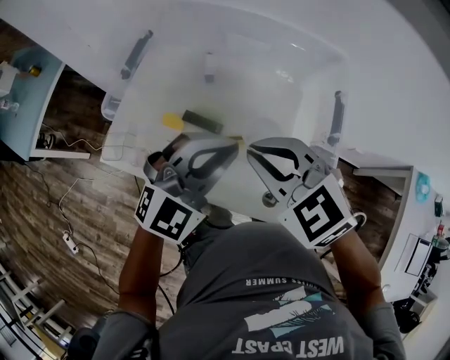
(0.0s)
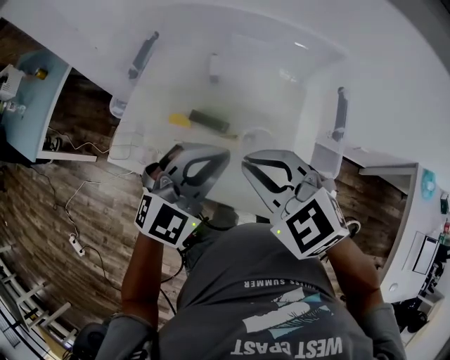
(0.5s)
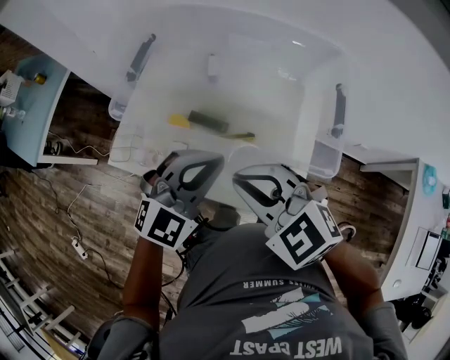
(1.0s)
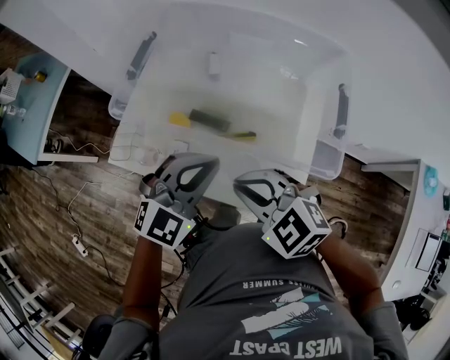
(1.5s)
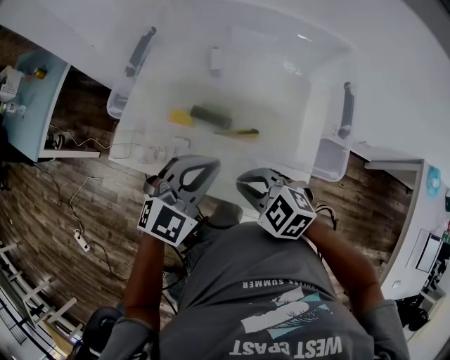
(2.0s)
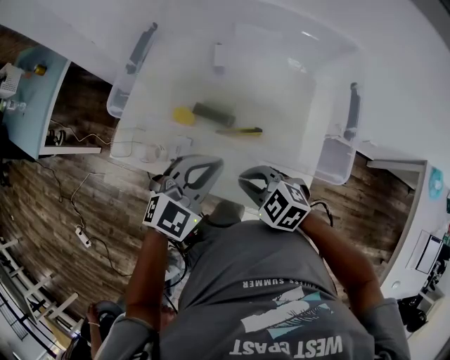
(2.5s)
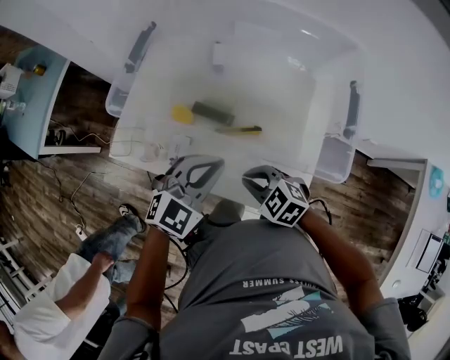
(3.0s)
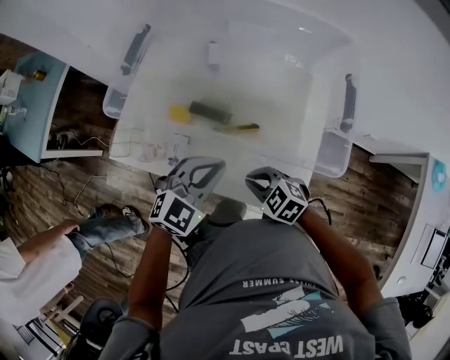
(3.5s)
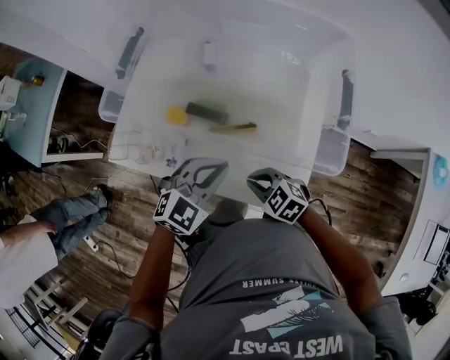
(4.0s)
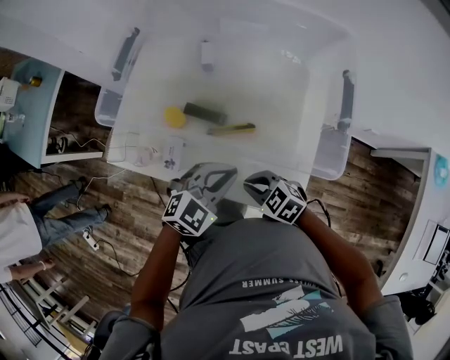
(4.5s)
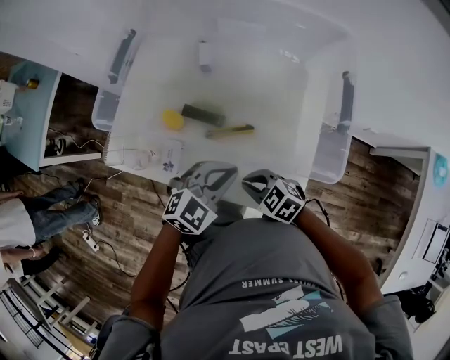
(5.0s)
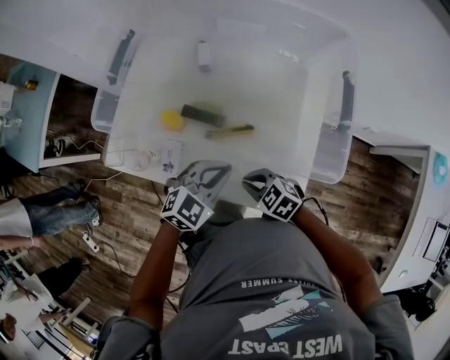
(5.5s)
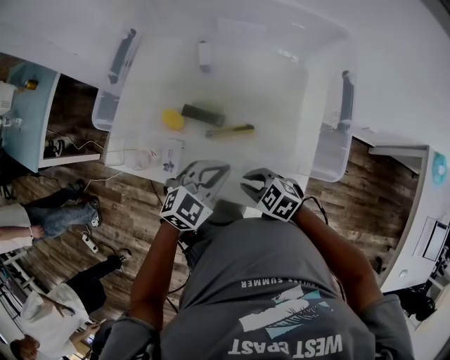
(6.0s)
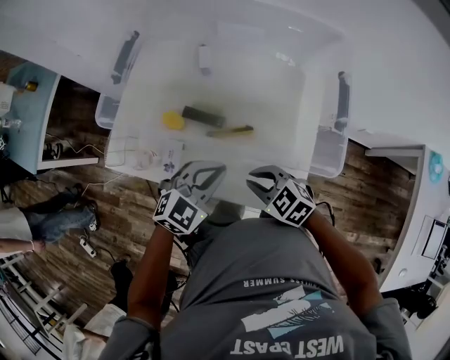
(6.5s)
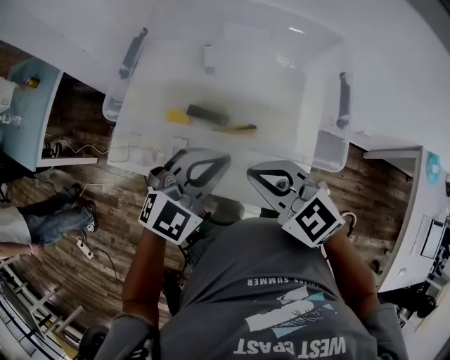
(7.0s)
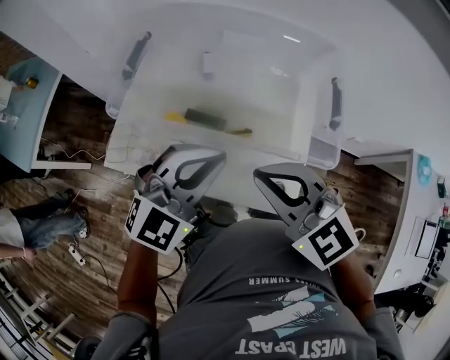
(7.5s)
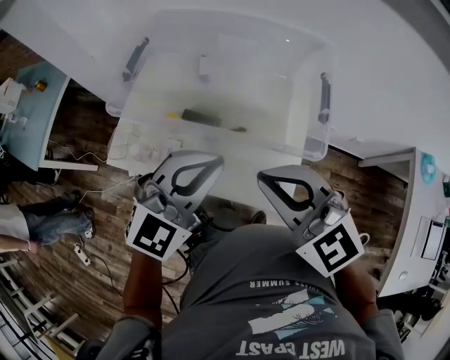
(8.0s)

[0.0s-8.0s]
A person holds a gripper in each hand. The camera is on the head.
0.0s to 2.0s: The left gripper shifts roughly 10 cm downward, while the right gripper travels downward and backward by about 15 cm.
2.0s to 4.0s: The left gripper travels downward by roughly 5 cm. Meanwhile the right gripper goes some 10 cm downward.
4.0s to 6.0s: The grippers move only a little.
6.0s to 8.0s: Both grippers travel together upward, some 30 cm. The left gripper turns by roughly 30 degrees. The right gripper turns by some 40 degrees.

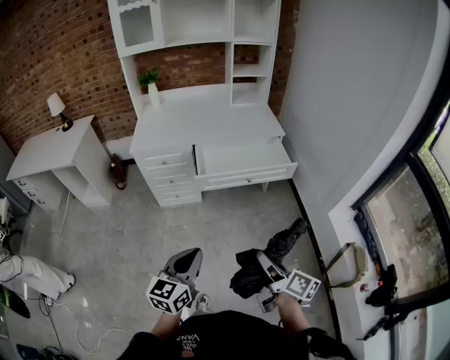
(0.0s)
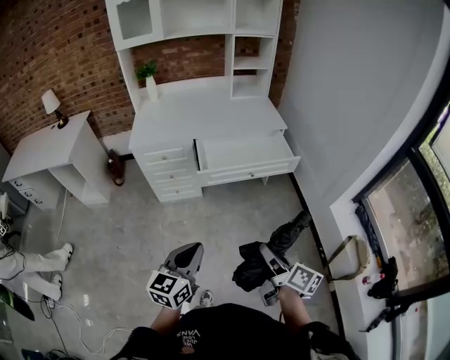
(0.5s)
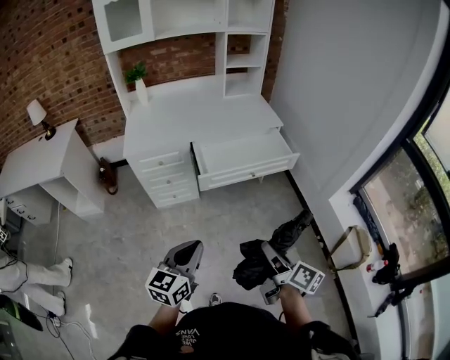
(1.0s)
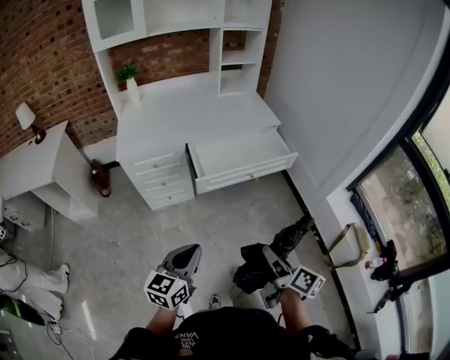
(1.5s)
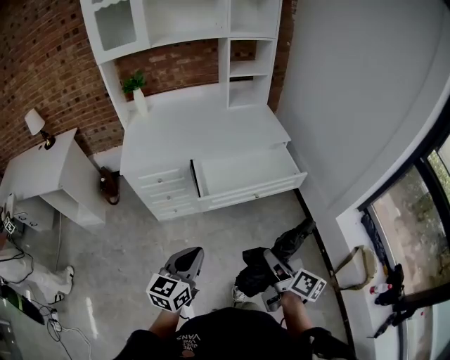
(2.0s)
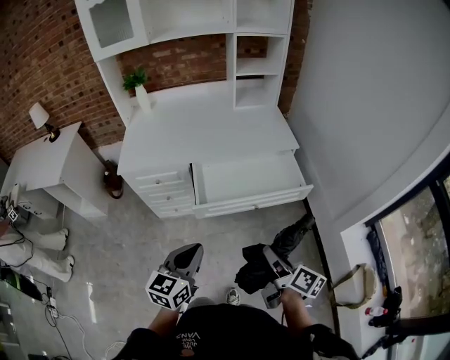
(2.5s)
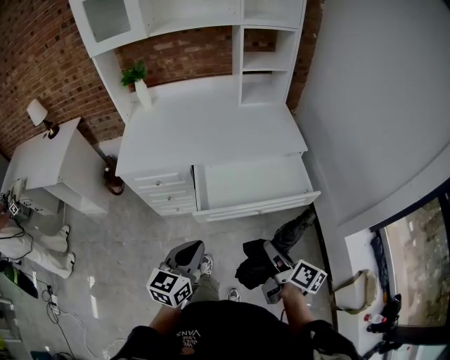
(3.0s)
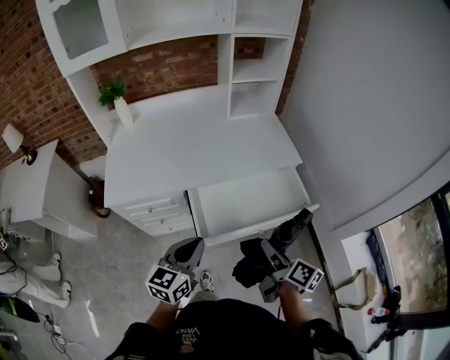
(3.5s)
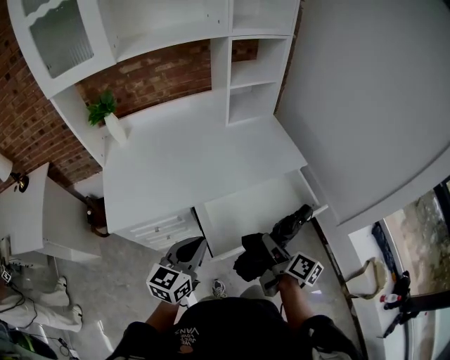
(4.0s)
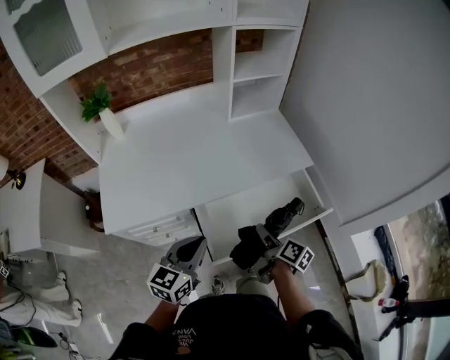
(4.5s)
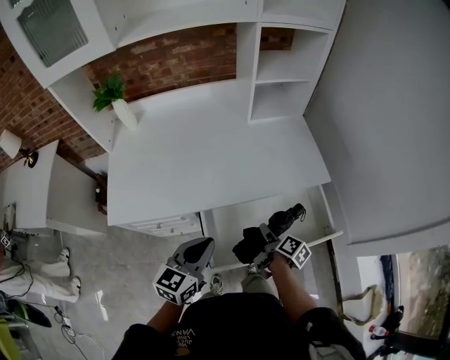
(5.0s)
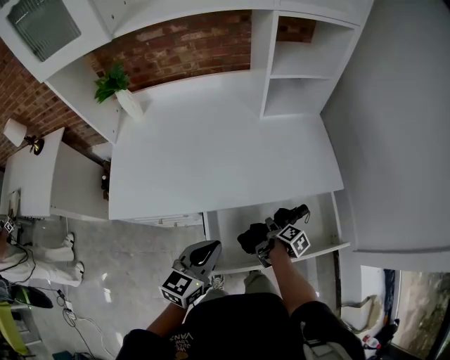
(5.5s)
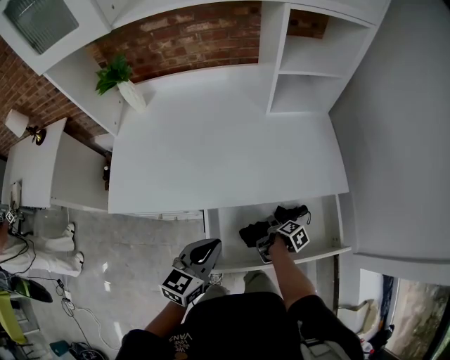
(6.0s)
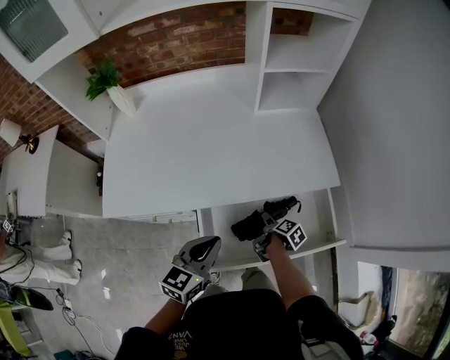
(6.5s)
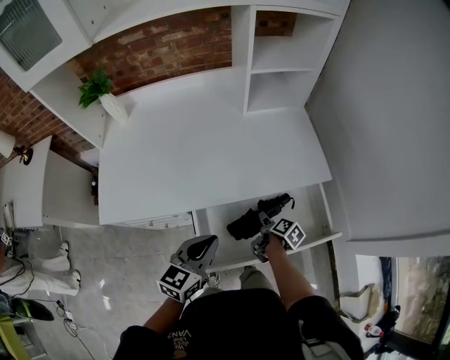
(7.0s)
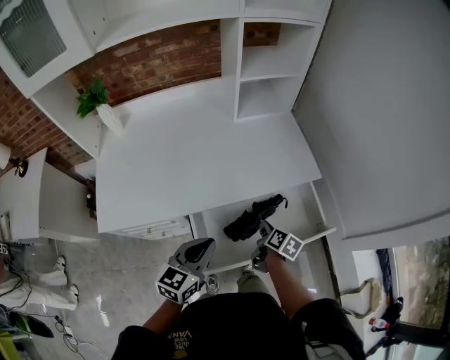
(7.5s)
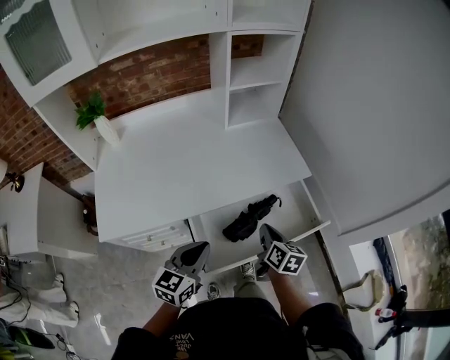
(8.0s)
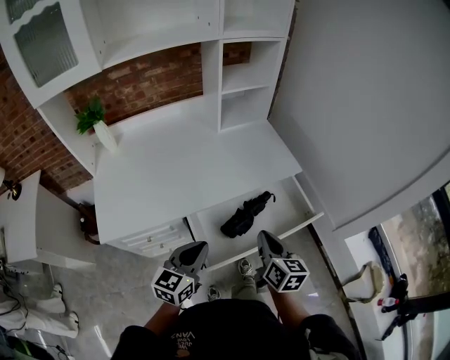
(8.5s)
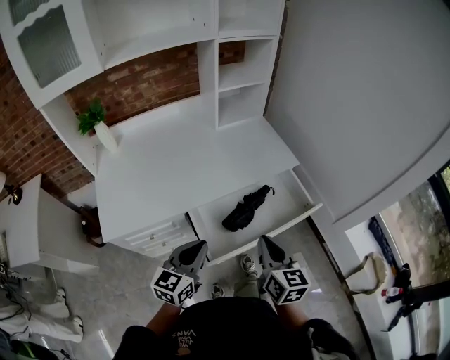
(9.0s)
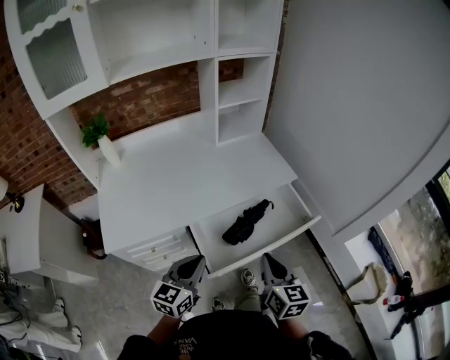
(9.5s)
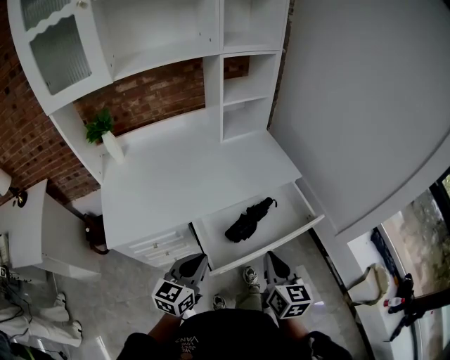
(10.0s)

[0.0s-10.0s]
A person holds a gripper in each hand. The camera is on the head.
0.0s to 2.0s: The right gripper heads forward, covering about 15 cm, while the left gripper is displaced forward and to the left by roughly 20 cm.
2.0s to 4.0s: The grippers both shift forward by some 35 cm.
4.0s to 6.0s: The right gripper goes approximately 35 cm downward and forward, and tilts its fingers approximately 40 degrees downward, while the left gripper is displaced forward and downward by approximately 15 cm.
6.0s to 8.0s: The left gripper heads backward, covering approximately 5 cm. The right gripper moves upward, roughly 20 cm, turns by some 50 degrees, and closes up.
8.0s to 10.0s: The left gripper shifts roughly 10 cm backward, while the right gripper moves backward and upward, roughly 20 cm, and rotates about 20 degrees.

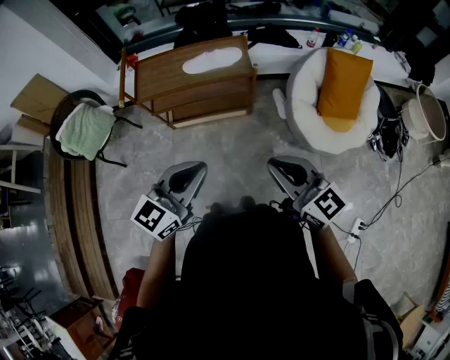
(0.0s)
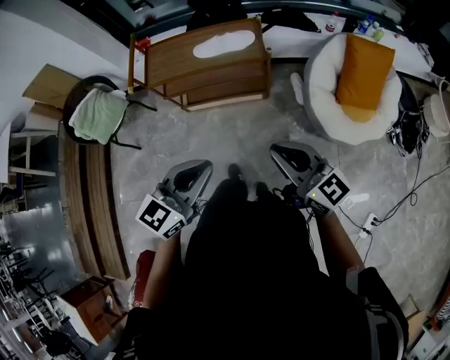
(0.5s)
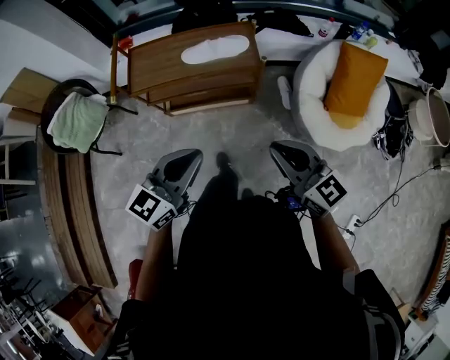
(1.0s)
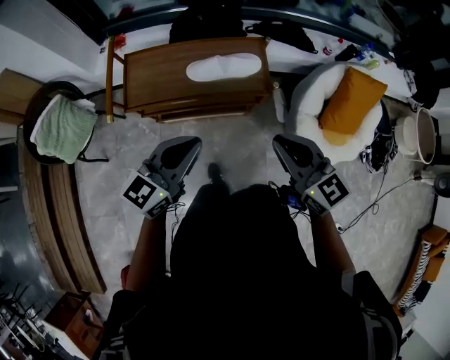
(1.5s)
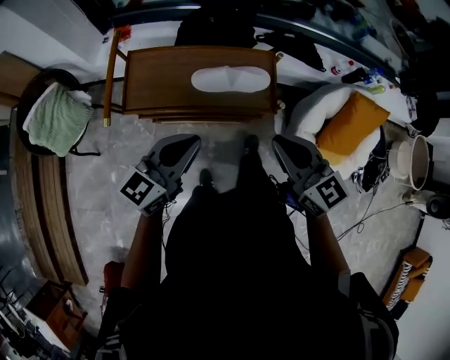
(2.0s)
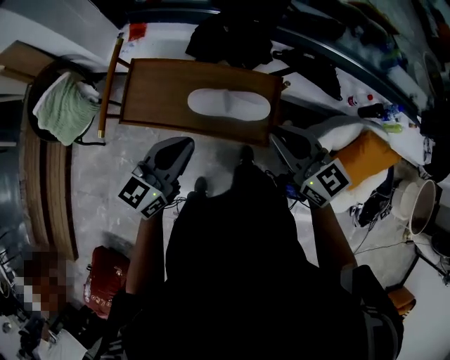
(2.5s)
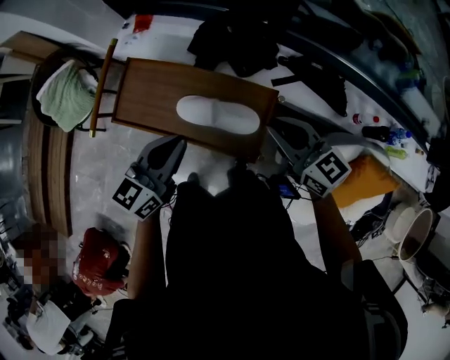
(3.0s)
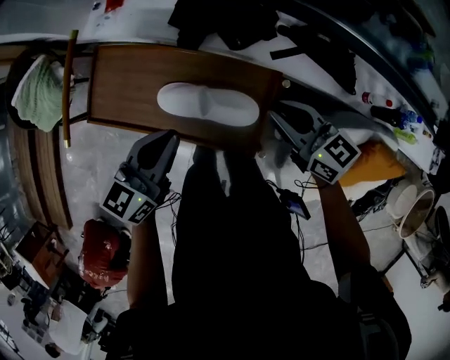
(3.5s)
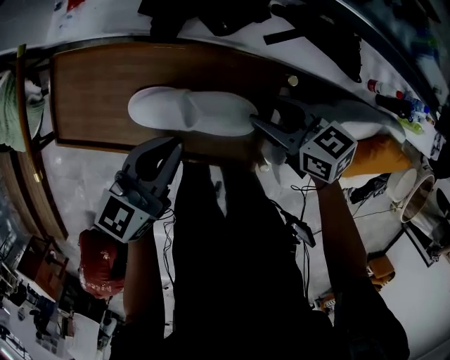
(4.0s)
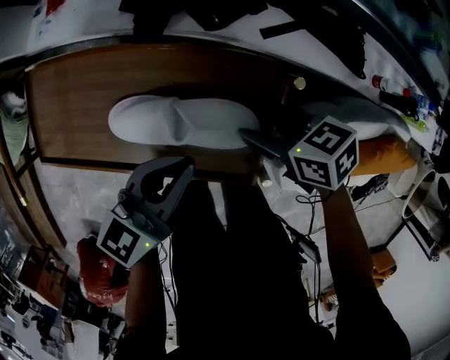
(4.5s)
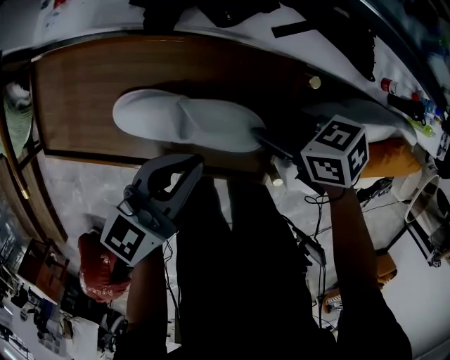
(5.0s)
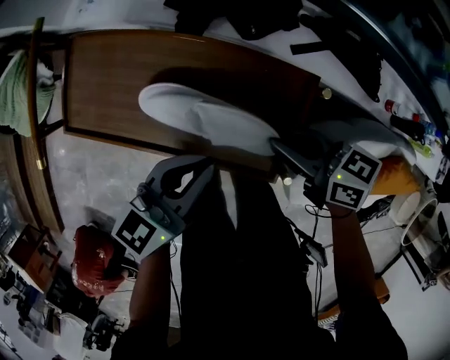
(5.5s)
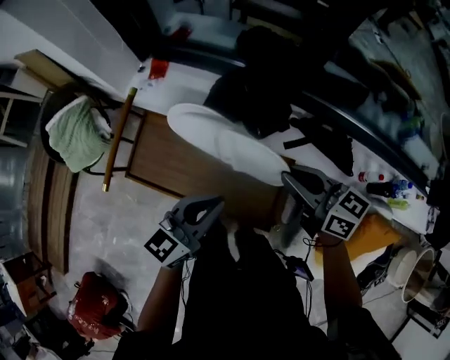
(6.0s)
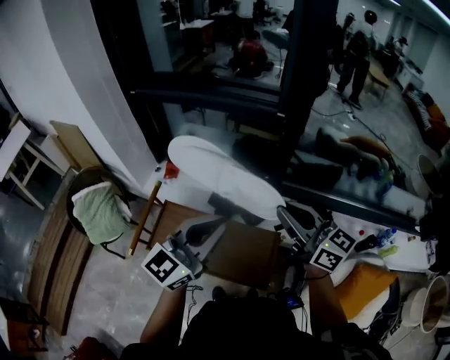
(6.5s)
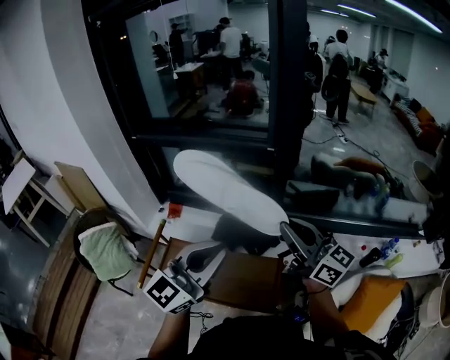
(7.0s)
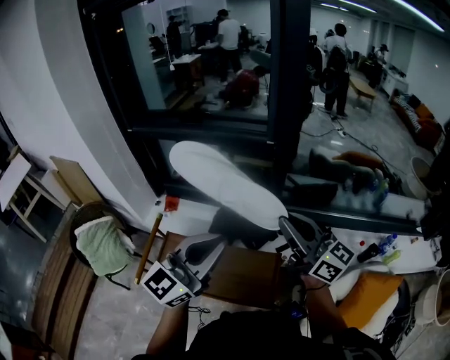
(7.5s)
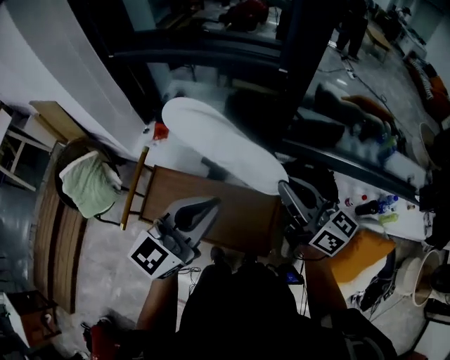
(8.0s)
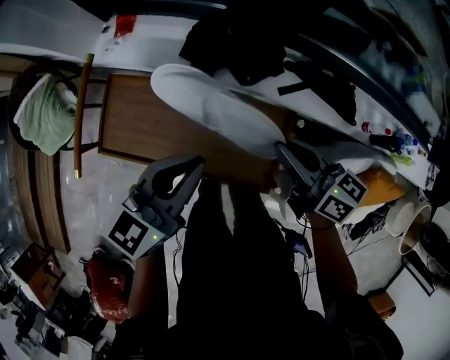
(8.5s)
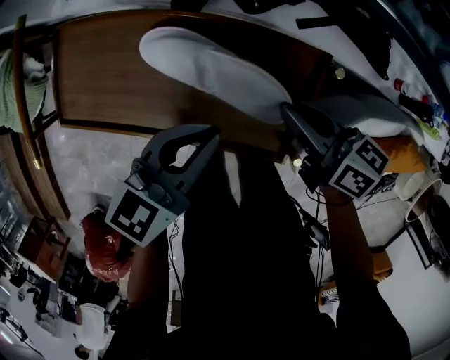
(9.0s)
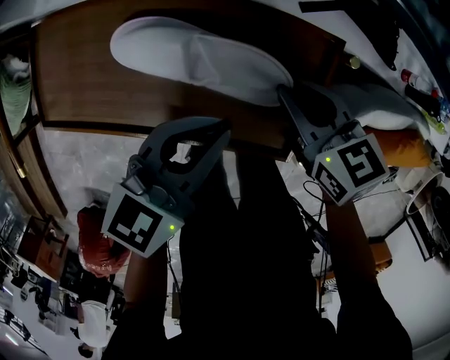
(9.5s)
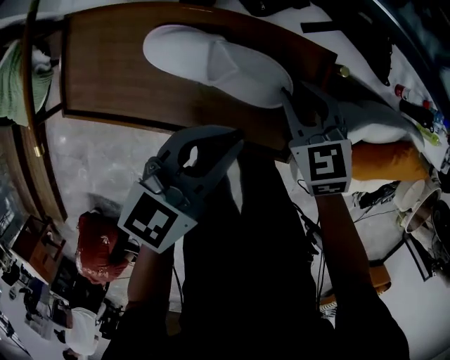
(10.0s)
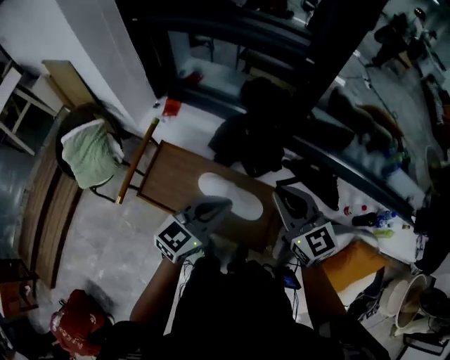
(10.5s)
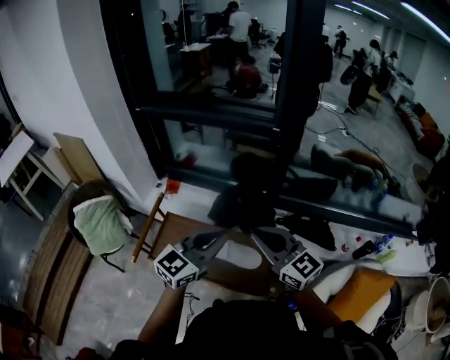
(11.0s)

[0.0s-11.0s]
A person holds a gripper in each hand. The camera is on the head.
0.0s to 2.0s: Both grippers travel together forward, some 30 cm.
2.0s to 3.5s: The two grippers go some 30 cm forward, to the right and downward. The right gripper rotates some 30 degrees, while the left gripper rotates approximately 30 degrees.
3.5s to 5.5s: Both grippers move downward, approximately 10 cm. The right gripper changes its angle by some 20 degrees, and opens and closes again.
5.5s to 7.5s: The two grippers go roughly 40 cm upward. The left gripper swivels about 40 degrees. The right gripper tips its fingers upward by about 40 degrees.
7.5s to 9.0s: Both grippers travel together downward, some 40 cm. The right gripper angles its fingers downward, by roughly 40 degrees. Meanwhile the left gripper points its fingers approximately 30 degrees further downward.
9.0s to 11.0s: The two grippers go about 35 cm upward. The right gripper rotates around the line of its fingers by about 50 degrees, counterclockwise from behind. Meanwhile the left gripper swivels roughly 30 degrees.
